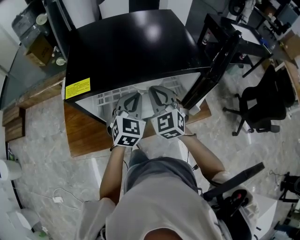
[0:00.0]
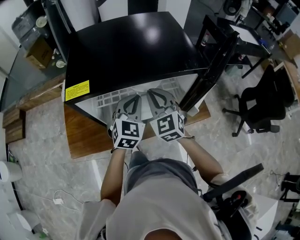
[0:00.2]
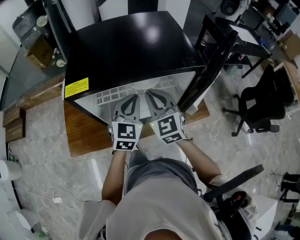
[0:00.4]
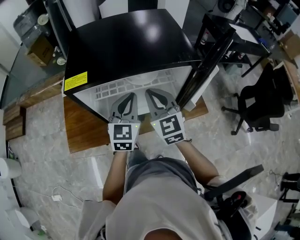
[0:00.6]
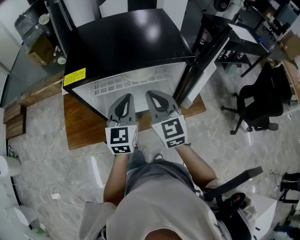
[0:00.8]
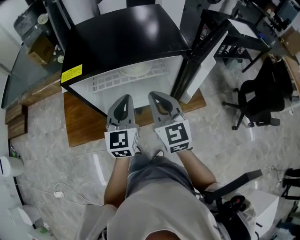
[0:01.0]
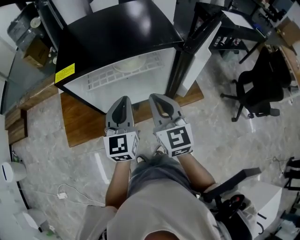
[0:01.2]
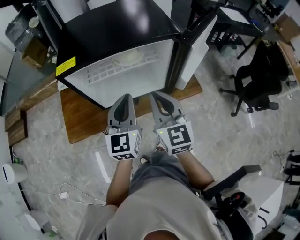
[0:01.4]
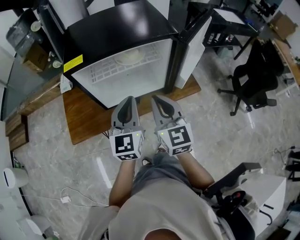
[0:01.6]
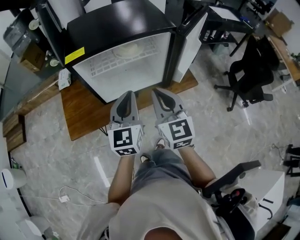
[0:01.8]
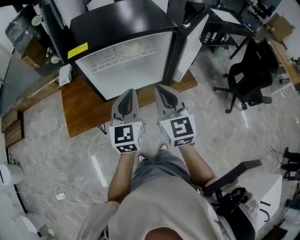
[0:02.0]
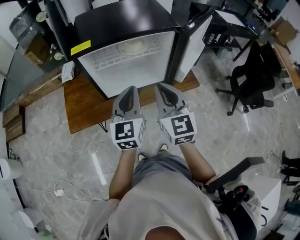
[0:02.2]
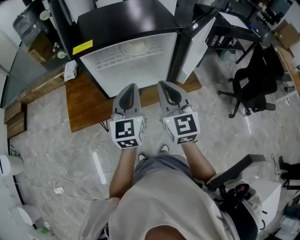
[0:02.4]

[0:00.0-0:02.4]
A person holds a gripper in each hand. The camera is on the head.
0:00.0 to 0:01.2: The left gripper travels backward and upward by about 15 cm, and rotates some 30 degrees, while the right gripper moves backward, approximately 15 cm, and swivels approximately 30 degrees.
0:01.2 to 0:02.4: Both grippers travel together backward, some 15 cm.

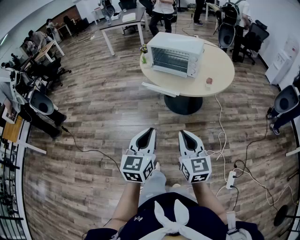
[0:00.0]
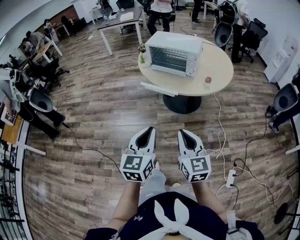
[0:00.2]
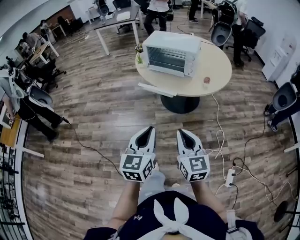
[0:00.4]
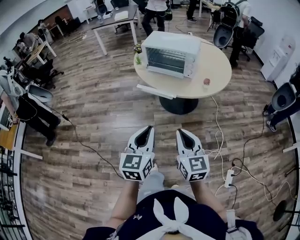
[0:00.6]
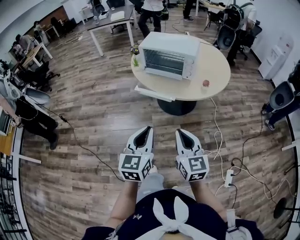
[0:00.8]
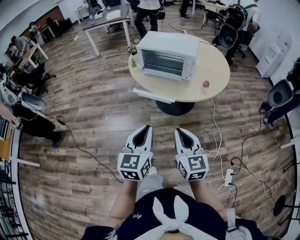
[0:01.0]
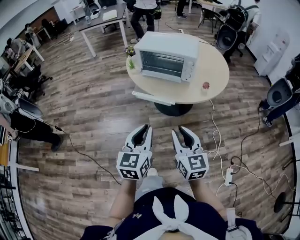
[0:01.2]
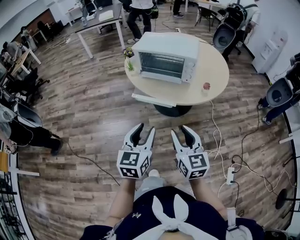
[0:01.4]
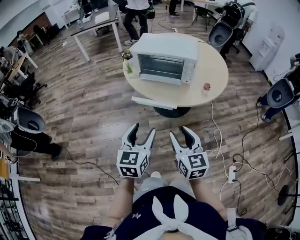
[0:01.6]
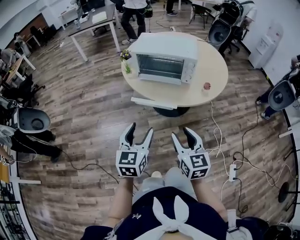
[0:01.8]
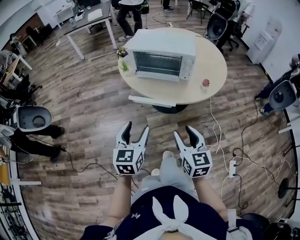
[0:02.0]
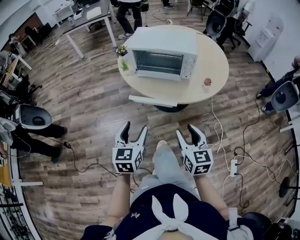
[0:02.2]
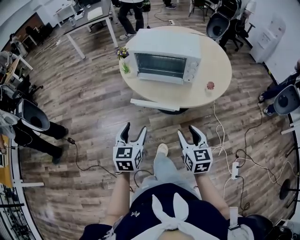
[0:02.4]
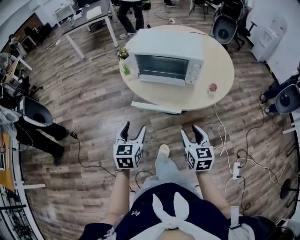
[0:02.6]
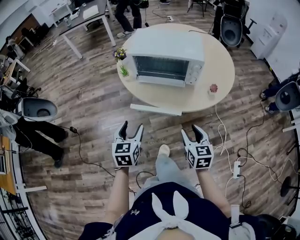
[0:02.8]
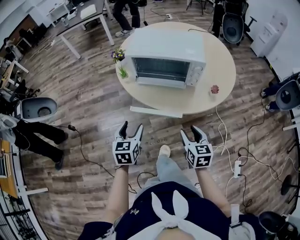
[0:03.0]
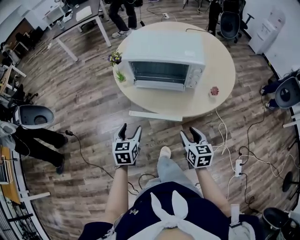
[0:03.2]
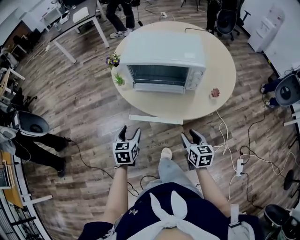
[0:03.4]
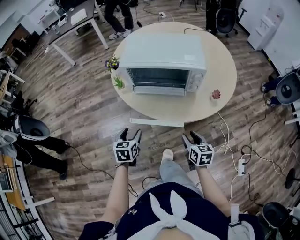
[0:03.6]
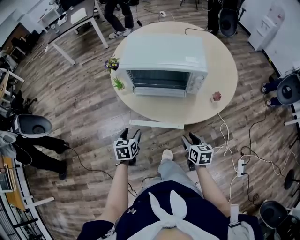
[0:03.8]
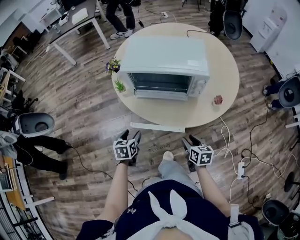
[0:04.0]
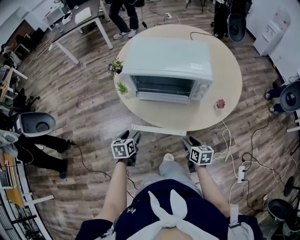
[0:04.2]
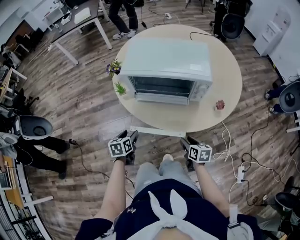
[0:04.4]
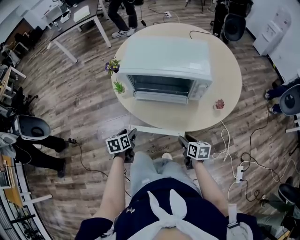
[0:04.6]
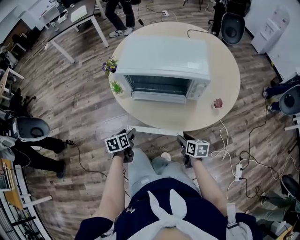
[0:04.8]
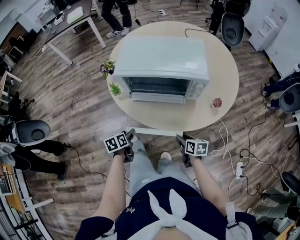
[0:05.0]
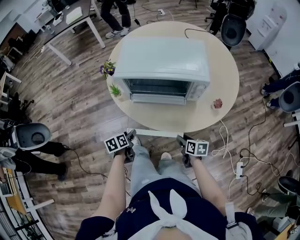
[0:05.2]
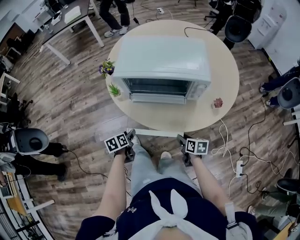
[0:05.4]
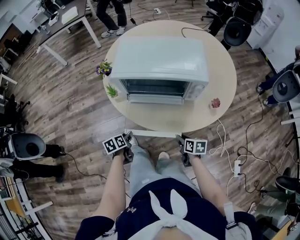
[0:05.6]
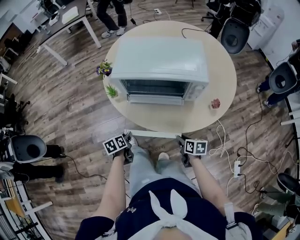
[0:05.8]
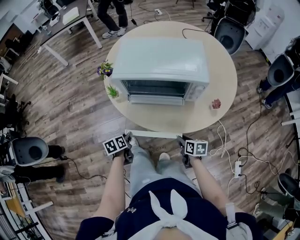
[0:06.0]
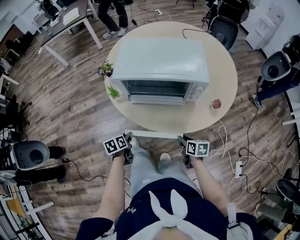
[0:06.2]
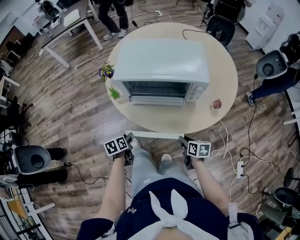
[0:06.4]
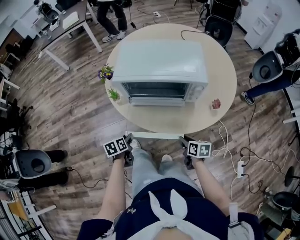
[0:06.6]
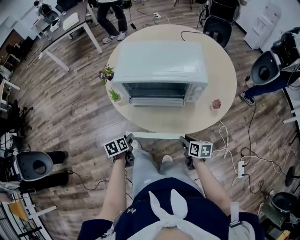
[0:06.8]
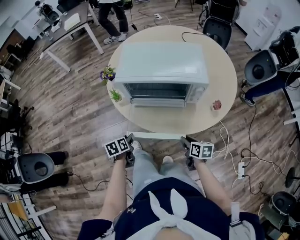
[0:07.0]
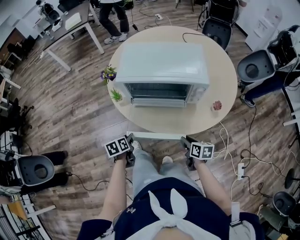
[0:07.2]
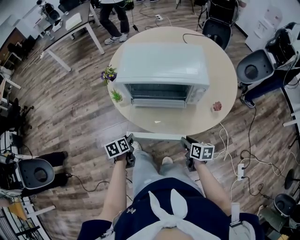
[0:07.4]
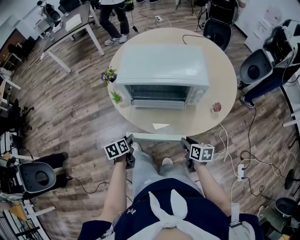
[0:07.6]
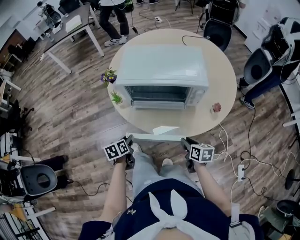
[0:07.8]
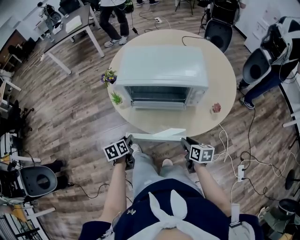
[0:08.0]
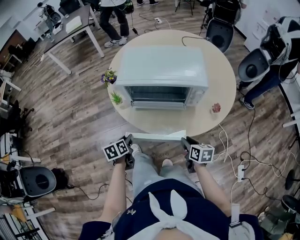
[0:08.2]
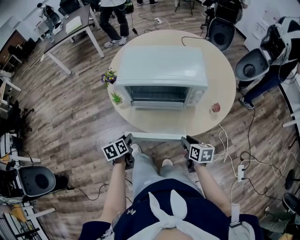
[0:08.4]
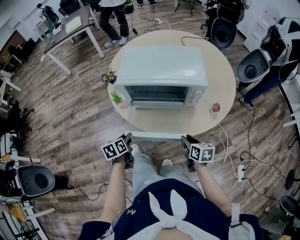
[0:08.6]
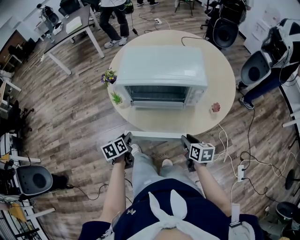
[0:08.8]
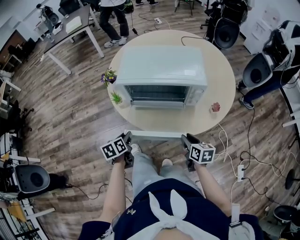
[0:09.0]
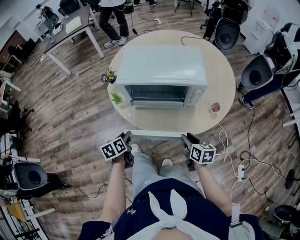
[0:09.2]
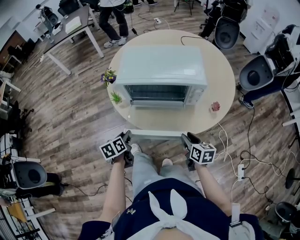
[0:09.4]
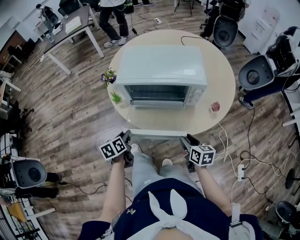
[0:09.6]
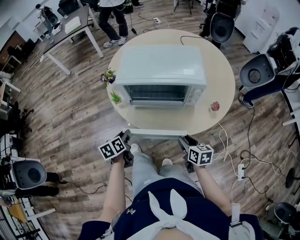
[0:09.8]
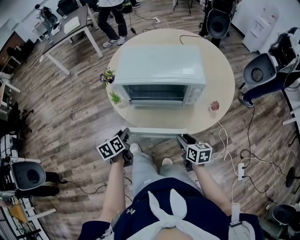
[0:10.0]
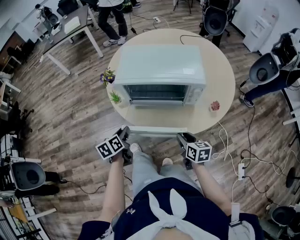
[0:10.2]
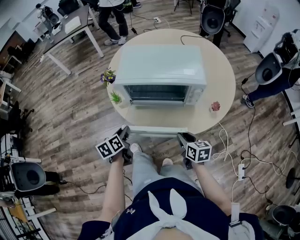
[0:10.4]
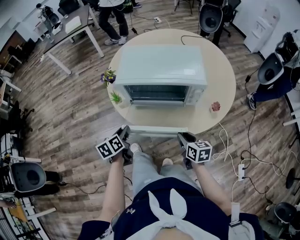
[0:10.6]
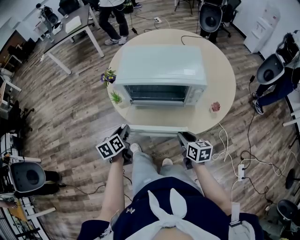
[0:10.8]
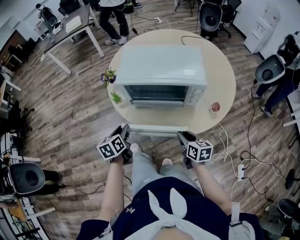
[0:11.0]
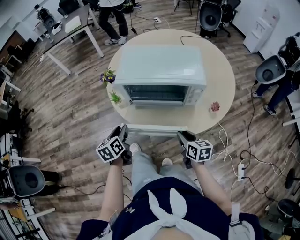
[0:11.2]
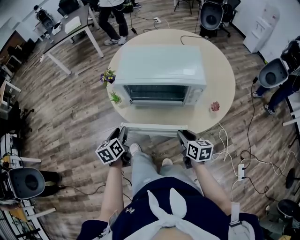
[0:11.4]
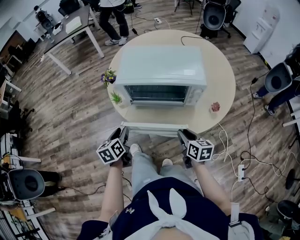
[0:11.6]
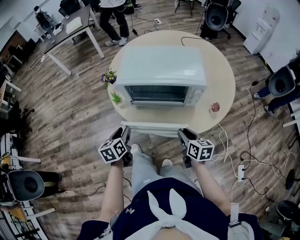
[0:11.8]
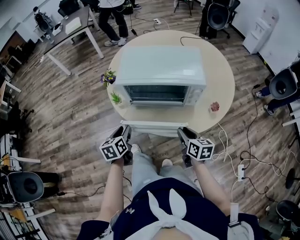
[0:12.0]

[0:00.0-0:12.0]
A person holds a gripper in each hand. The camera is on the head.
0:00.0 to 0:01.6: Both grippers travel together forward, some 20 cm. The left gripper opens. The right gripper opens up.
0:01.6 to 0:03.0: The left gripper goes some 20 cm forward, downward and to the left. The right gripper moves forward and downward, approximately 20 cm, and rotates about 20 degrees.
0:03.0 to 0:04.4: Both grippers travel together downward and forward, approximately 15 cm. The left gripper changes its angle by roughly 20 degrees; the right gripper swivels some 30 degrees.
0:04.4 to 0:06.0: The left gripper goes about 5 cm downward, and closes up.
0:06.0 to 0:07.6: The left gripper heads upward, covering some 5 cm.
0:07.6 to 0:09.0: The grippers stay close to where they were, moving slightly.
0:09.0 to 0:10.4: The grippers stay close to where they were, moving slightly.
0:10.4 to 0:12.0: The grippers move only a little.

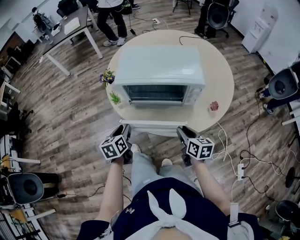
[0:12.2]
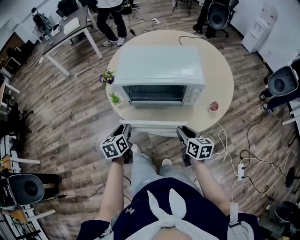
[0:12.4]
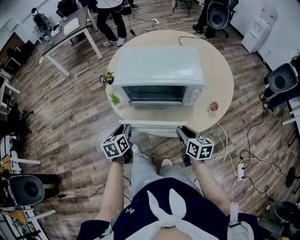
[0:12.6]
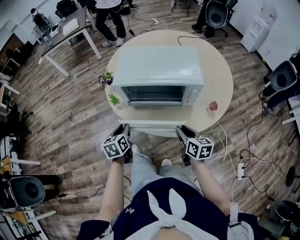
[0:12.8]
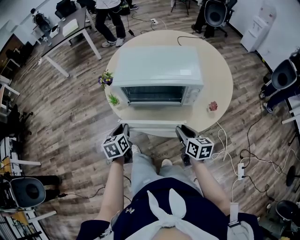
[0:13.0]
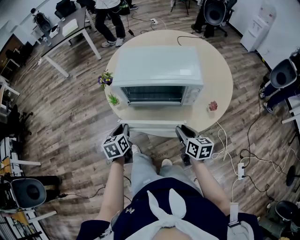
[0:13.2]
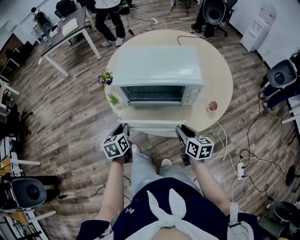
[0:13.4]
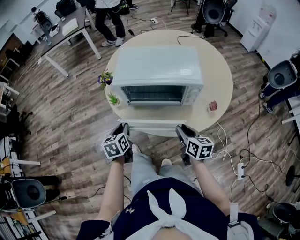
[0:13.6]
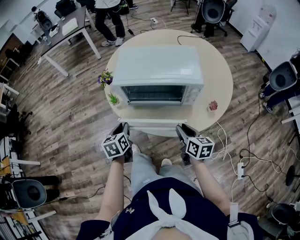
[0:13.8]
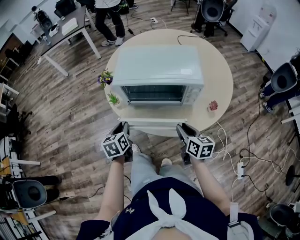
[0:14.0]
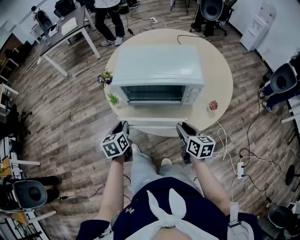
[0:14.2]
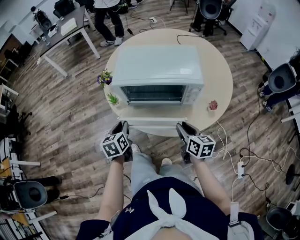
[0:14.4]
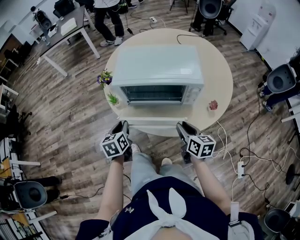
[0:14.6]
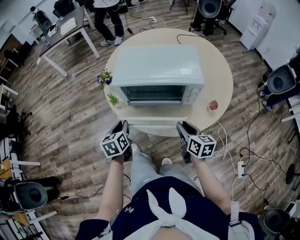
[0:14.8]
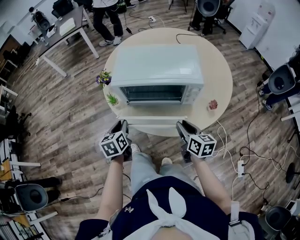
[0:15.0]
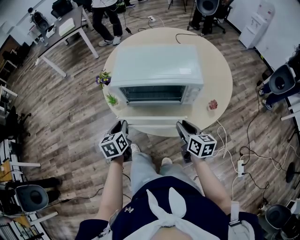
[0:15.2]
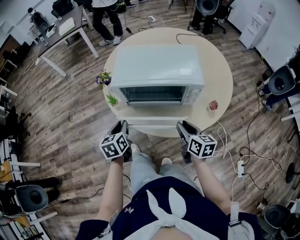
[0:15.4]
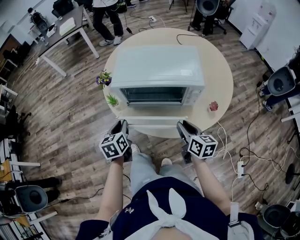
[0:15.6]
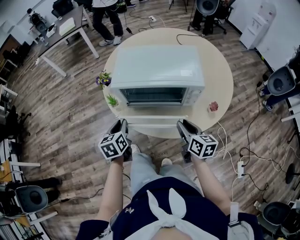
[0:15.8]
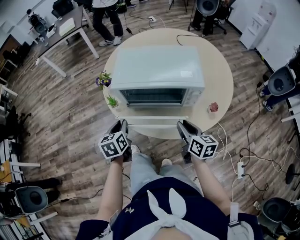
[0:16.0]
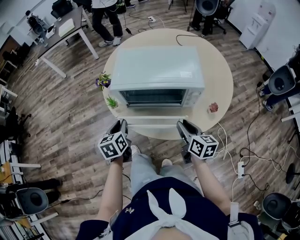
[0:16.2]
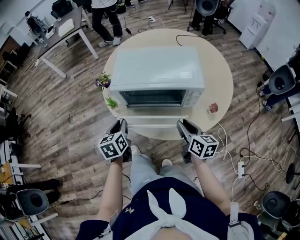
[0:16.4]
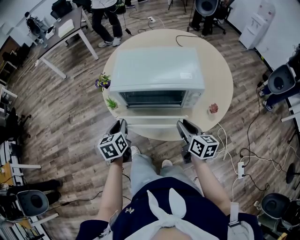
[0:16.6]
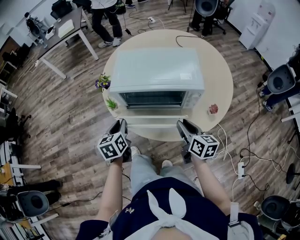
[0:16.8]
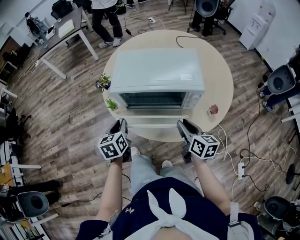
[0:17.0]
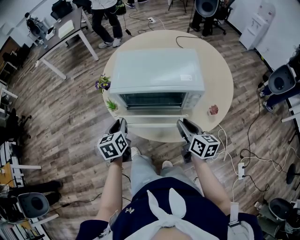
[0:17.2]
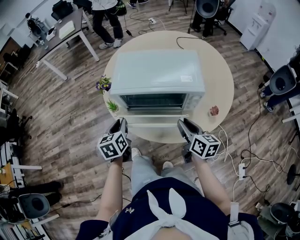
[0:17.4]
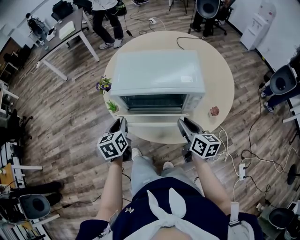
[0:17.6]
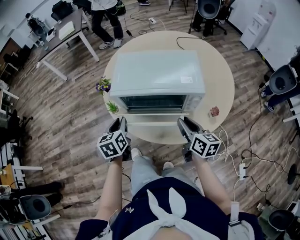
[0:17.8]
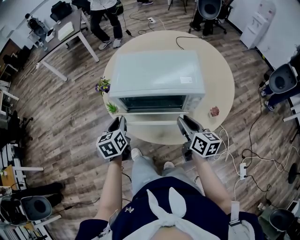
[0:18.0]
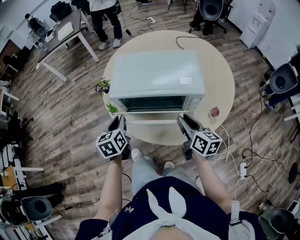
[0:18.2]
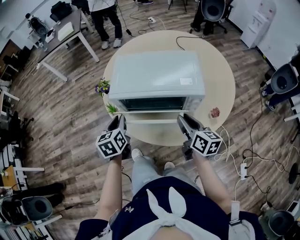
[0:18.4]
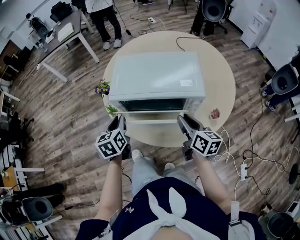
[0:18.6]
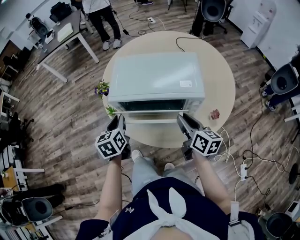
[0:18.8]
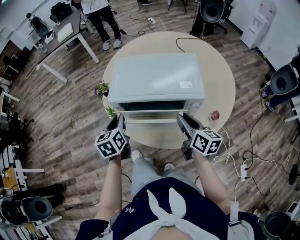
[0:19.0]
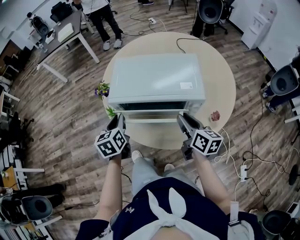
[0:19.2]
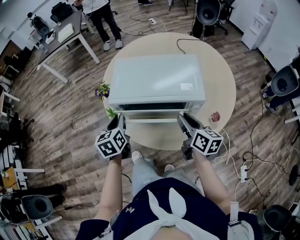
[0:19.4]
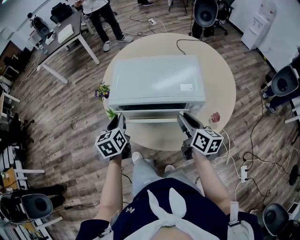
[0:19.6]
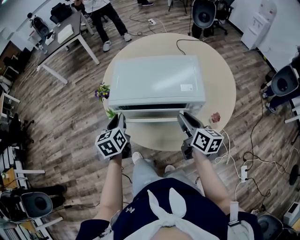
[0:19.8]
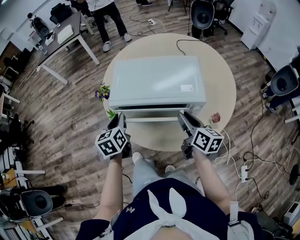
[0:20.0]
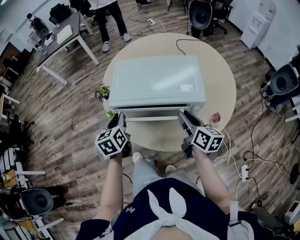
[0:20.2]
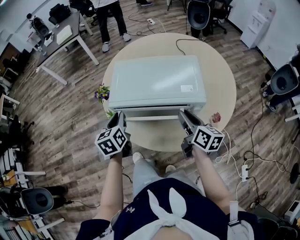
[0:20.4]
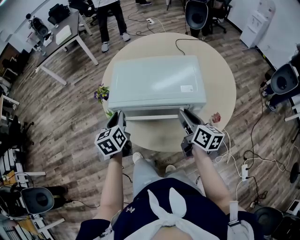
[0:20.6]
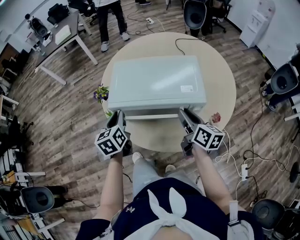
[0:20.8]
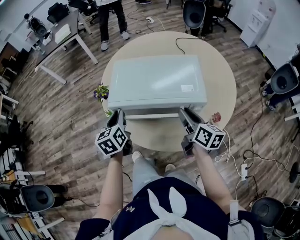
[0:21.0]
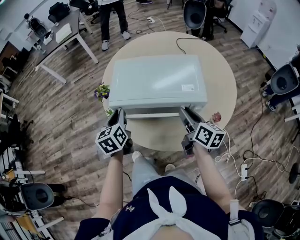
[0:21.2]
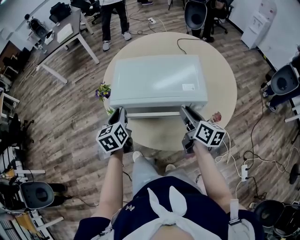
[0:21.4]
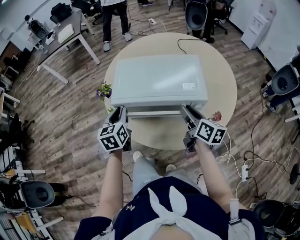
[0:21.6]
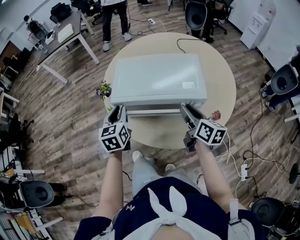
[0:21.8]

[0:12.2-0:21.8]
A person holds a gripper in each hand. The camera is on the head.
0:12.2 to 0:15.4: The grippers move only a little.
0:15.4 to 0:17.0: The grippers make only small movements.
0:17.0 to 0:18.6: The left gripper ends up roughly 5 cm from where it was. Meanwhile the right gripper ends up approximately 5 cm from where it was.
0:18.6 to 0:21.8: The grippers move only a little.
